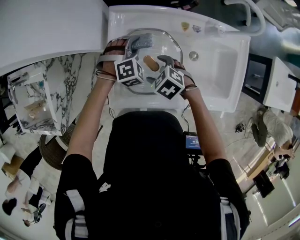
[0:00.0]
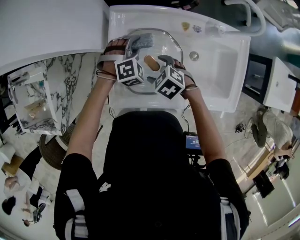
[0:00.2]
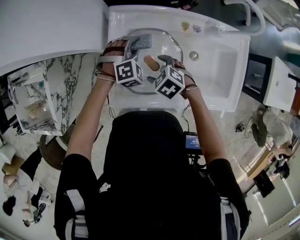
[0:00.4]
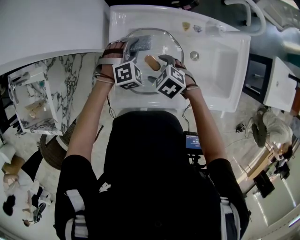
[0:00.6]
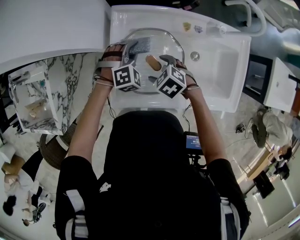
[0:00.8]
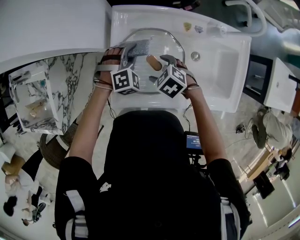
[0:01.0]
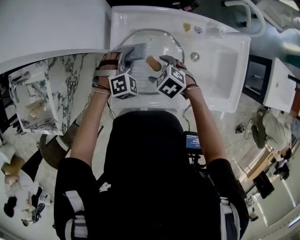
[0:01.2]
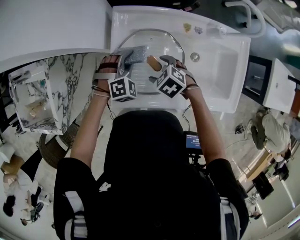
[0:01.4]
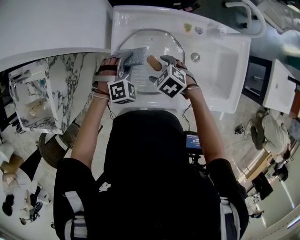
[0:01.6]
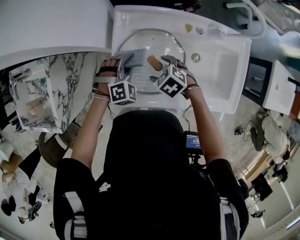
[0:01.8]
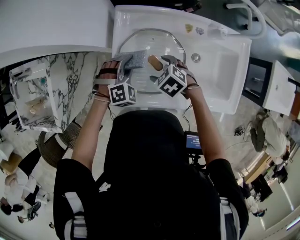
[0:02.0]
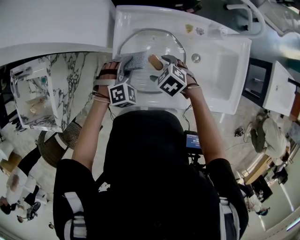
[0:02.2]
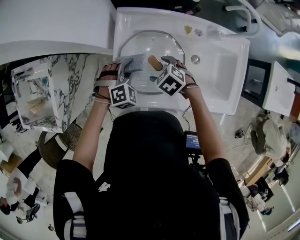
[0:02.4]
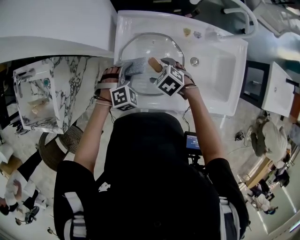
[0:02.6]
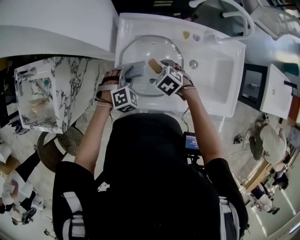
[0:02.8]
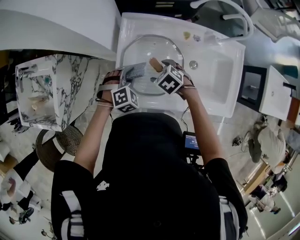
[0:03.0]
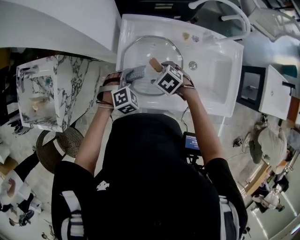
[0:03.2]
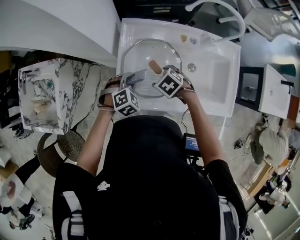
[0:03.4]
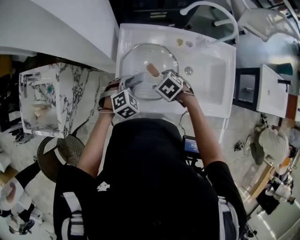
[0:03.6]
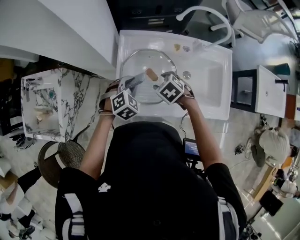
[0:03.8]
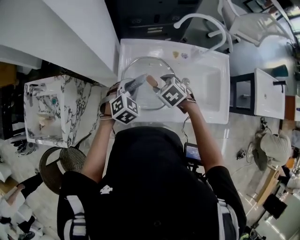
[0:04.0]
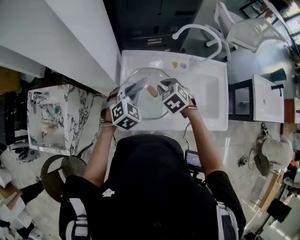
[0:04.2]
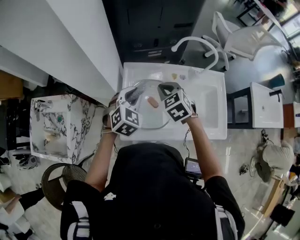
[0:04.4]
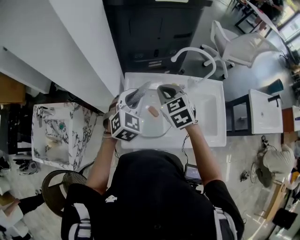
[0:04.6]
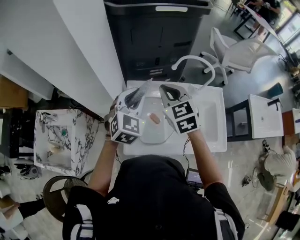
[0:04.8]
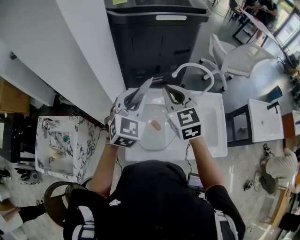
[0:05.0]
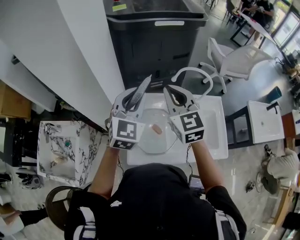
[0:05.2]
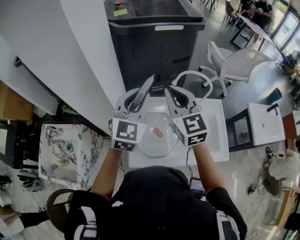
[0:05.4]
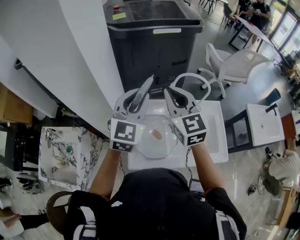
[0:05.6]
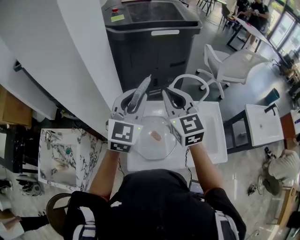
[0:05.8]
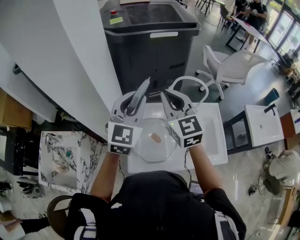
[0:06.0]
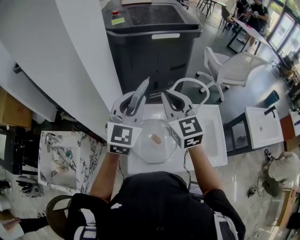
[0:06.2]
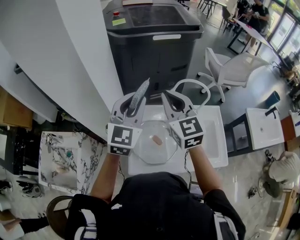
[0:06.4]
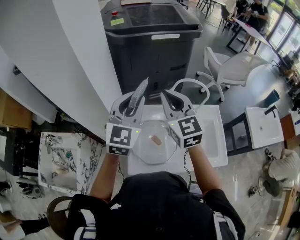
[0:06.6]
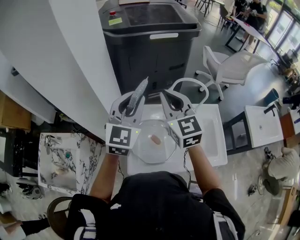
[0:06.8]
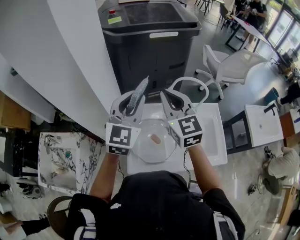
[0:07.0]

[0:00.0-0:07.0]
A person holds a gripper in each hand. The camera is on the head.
0:00.0 to 0:01.4: The left gripper travels to the left by some 5 cm.
0:01.4 to 0:02.8: The left gripper changes place by approximately 5 cm.
0:02.8 to 0:04.2: Both grippers travel together upward, about 15 cm. The right gripper rotates approximately 20 degrees, and closes its fingers.
0:04.2 to 0:05.6: The grippers both shift upward by approximately 30 cm. The left gripper tilts its fingers approximately 40 degrees upward; the right gripper points its fingers roughly 50 degrees further upward.
0:05.6 to 0:07.0: The grippers move only a little.

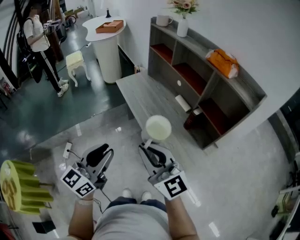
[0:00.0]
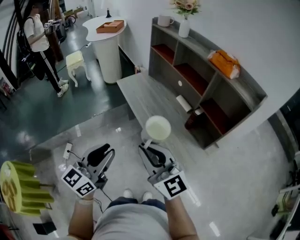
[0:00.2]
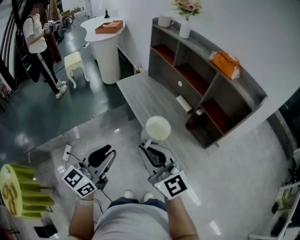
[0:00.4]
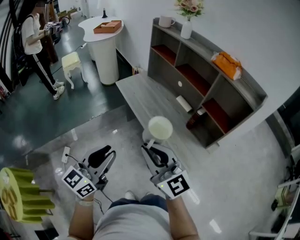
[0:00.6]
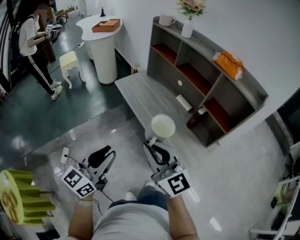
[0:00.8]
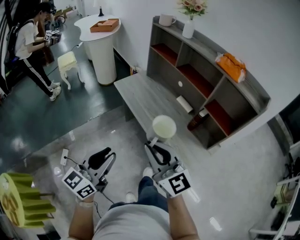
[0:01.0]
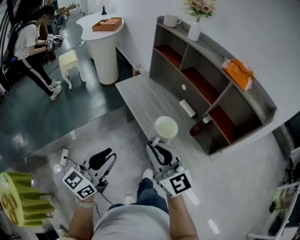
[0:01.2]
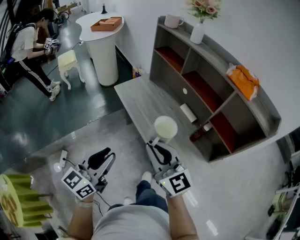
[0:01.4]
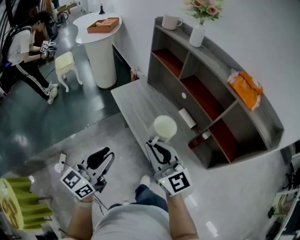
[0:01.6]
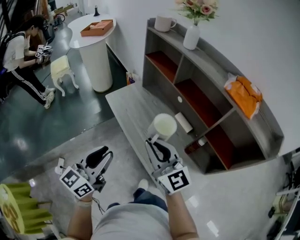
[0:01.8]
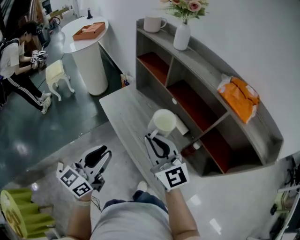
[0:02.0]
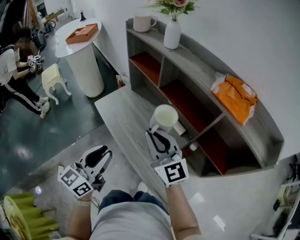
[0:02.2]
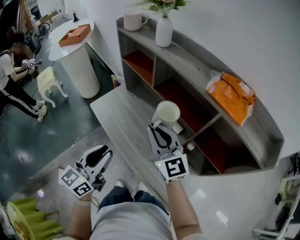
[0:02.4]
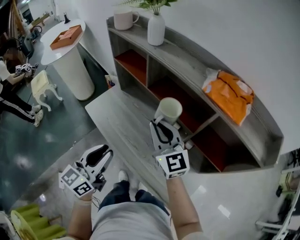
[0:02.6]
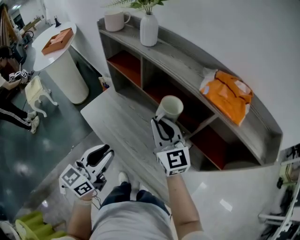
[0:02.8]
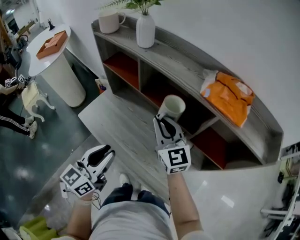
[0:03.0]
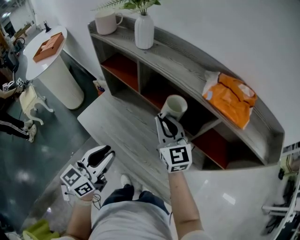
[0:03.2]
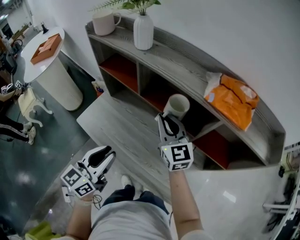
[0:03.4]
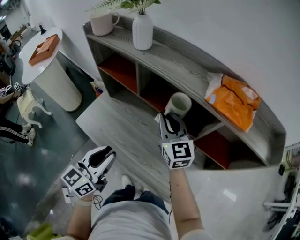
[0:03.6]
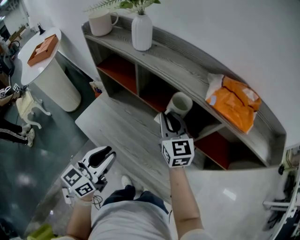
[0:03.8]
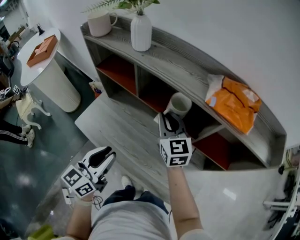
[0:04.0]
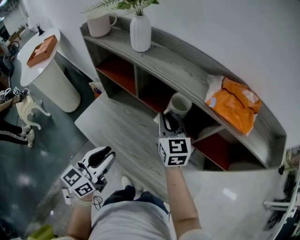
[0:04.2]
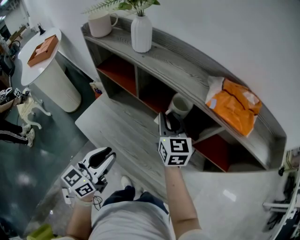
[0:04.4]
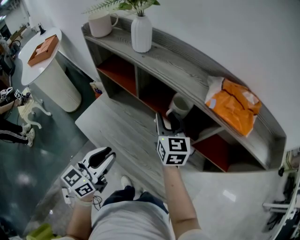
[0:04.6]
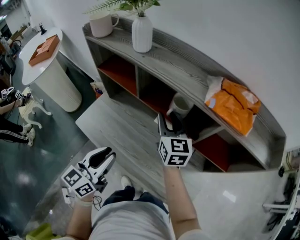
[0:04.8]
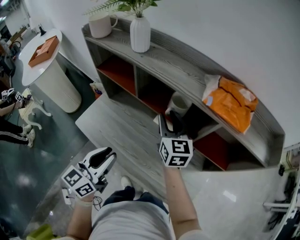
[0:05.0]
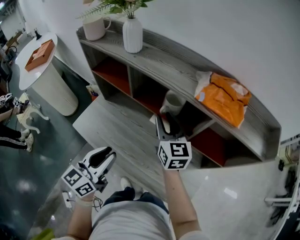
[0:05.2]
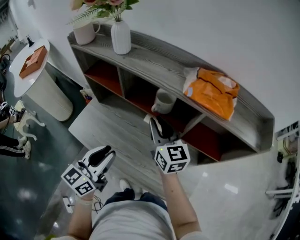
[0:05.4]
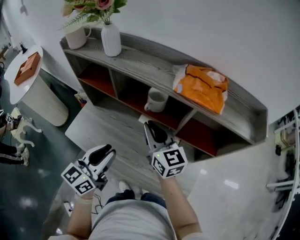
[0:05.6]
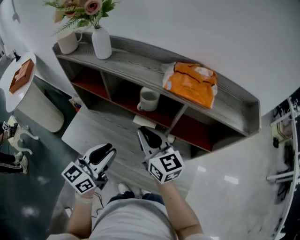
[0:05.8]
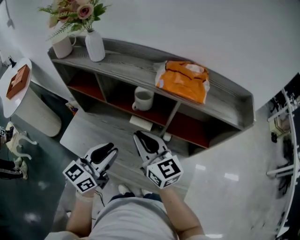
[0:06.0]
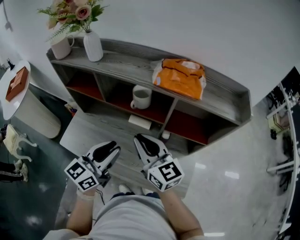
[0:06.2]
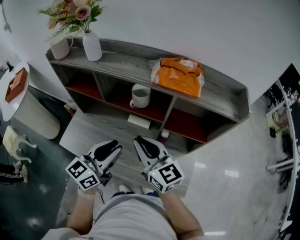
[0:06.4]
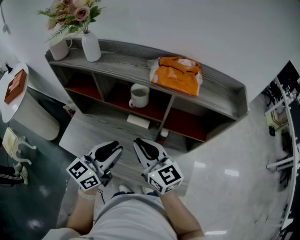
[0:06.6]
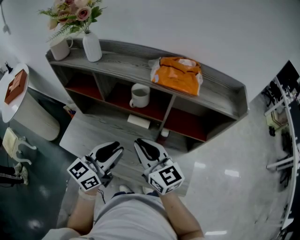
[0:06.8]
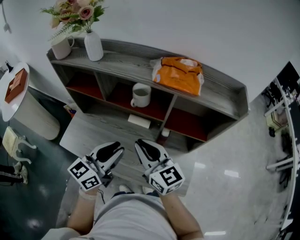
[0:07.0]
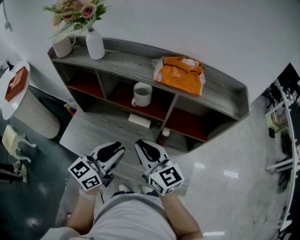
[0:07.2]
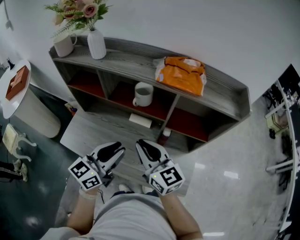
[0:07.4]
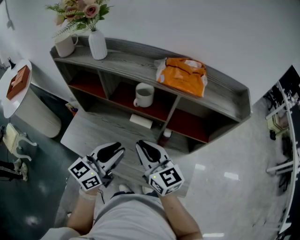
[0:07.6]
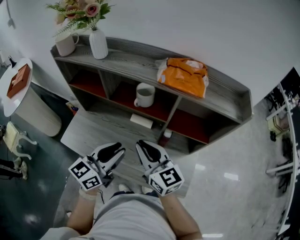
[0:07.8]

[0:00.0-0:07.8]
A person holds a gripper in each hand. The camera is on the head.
0:00.0 to 0:01.6: Both grippers move forward, some 20 cm.
0:01.6 to 0:03.2: The left gripper moves roughly 25 cm, and rotates roughly 20 degrees. Meanwhile the right gripper ends up roughly 35 cm from where it was, and changes its angle by approximately 30 degrees.
0:03.2 to 0:04.6: The right gripper heads forward, covering approximately 5 cm, and opens.
0:04.6 to 0:06.2: The right gripper is displaced backward by about 15 cm, and closes up, while the left gripper is displaced to the right by about 10 cm, and rotates approximately 20 degrees.
0:06.2 to 0:07.8: There are only small adjustments of the grippers.

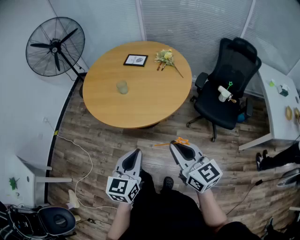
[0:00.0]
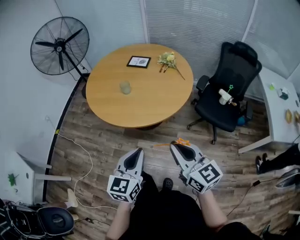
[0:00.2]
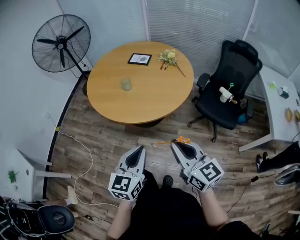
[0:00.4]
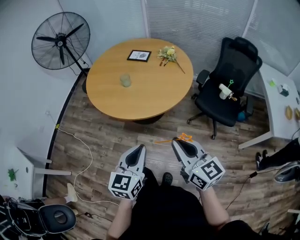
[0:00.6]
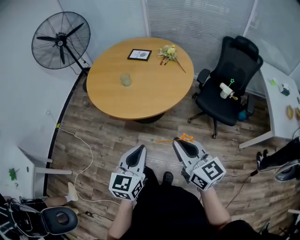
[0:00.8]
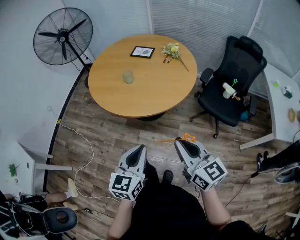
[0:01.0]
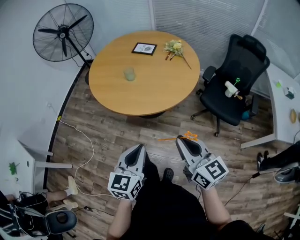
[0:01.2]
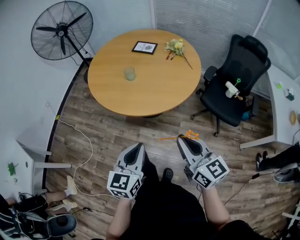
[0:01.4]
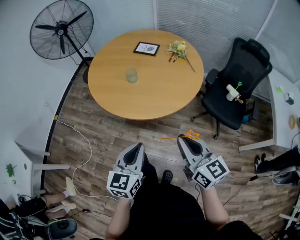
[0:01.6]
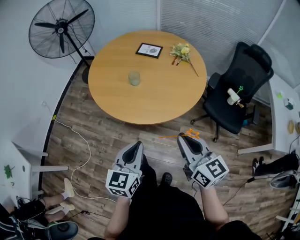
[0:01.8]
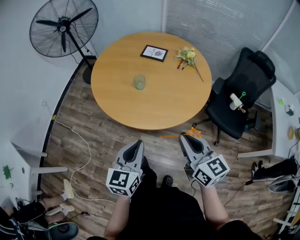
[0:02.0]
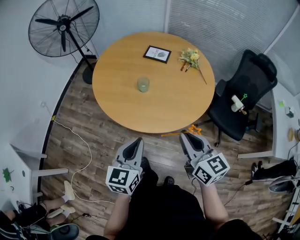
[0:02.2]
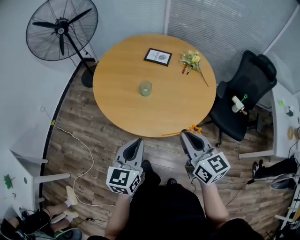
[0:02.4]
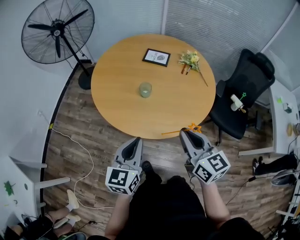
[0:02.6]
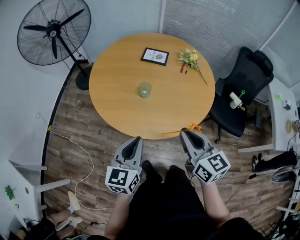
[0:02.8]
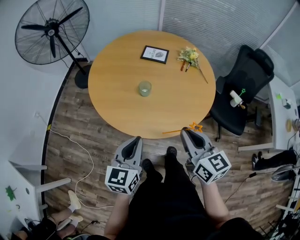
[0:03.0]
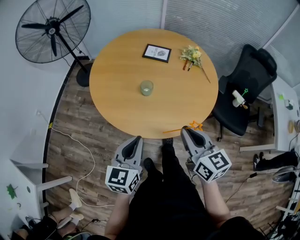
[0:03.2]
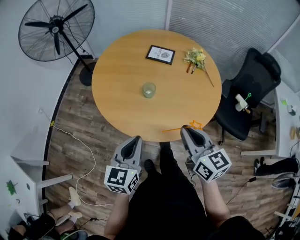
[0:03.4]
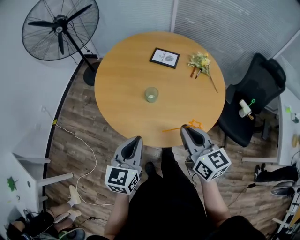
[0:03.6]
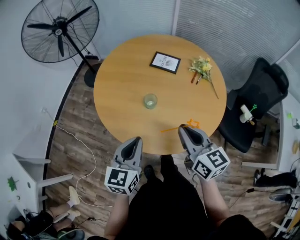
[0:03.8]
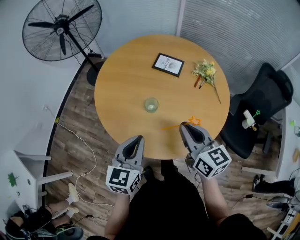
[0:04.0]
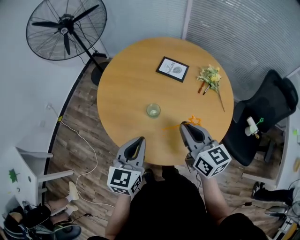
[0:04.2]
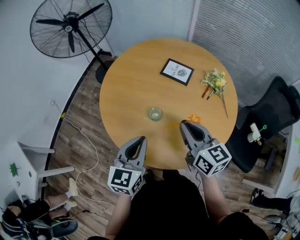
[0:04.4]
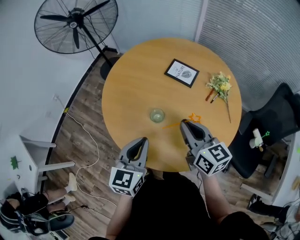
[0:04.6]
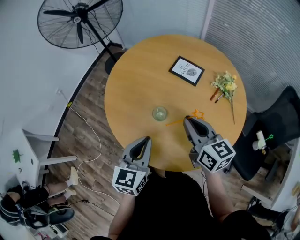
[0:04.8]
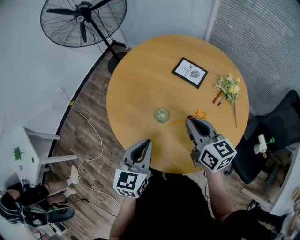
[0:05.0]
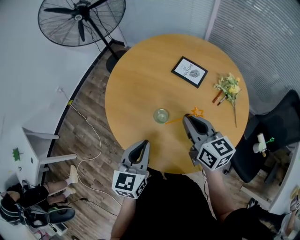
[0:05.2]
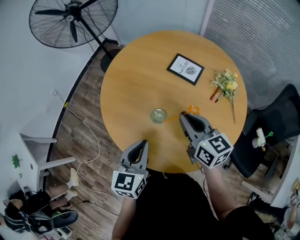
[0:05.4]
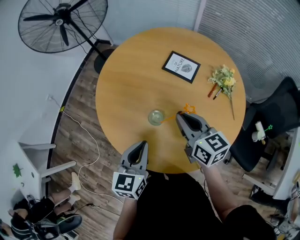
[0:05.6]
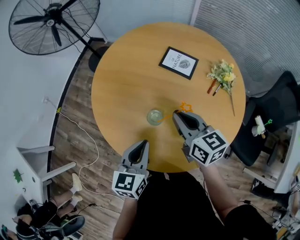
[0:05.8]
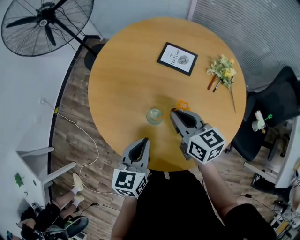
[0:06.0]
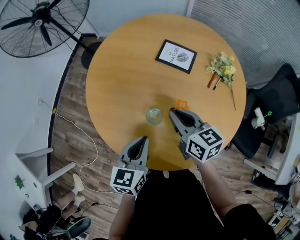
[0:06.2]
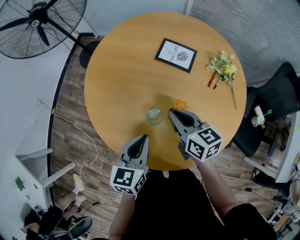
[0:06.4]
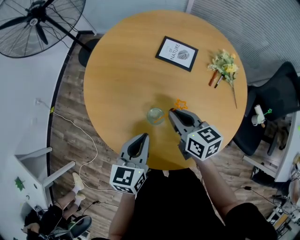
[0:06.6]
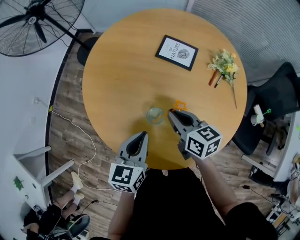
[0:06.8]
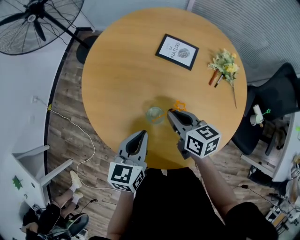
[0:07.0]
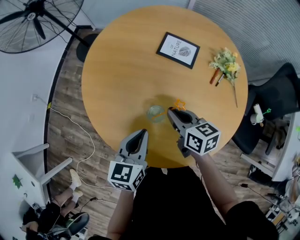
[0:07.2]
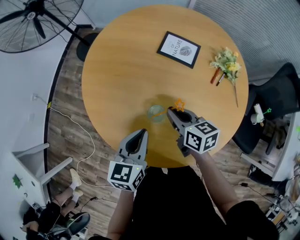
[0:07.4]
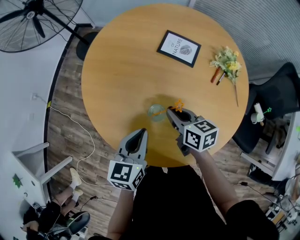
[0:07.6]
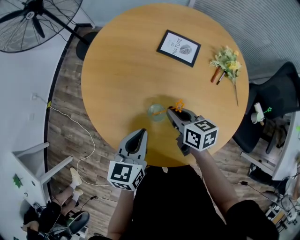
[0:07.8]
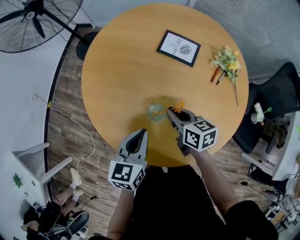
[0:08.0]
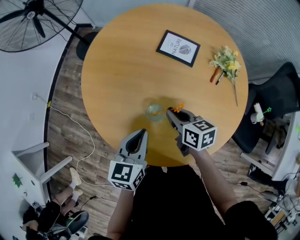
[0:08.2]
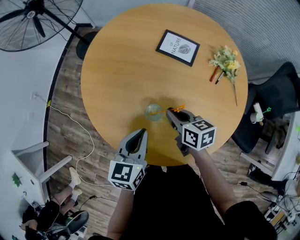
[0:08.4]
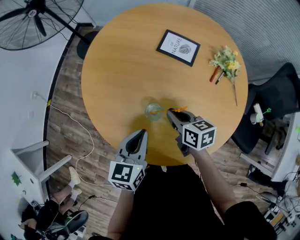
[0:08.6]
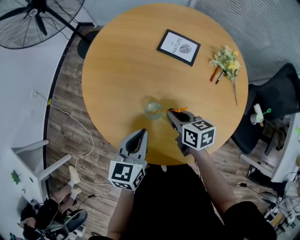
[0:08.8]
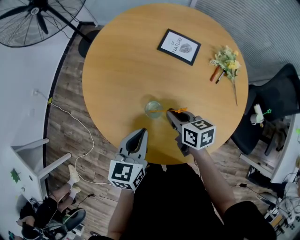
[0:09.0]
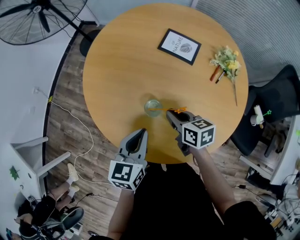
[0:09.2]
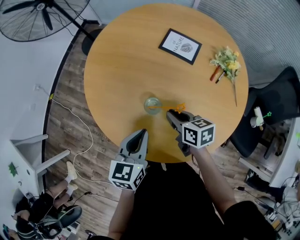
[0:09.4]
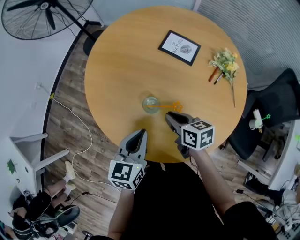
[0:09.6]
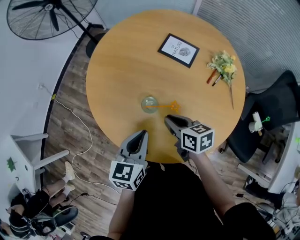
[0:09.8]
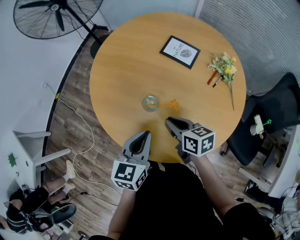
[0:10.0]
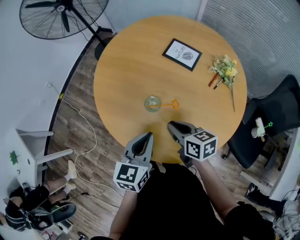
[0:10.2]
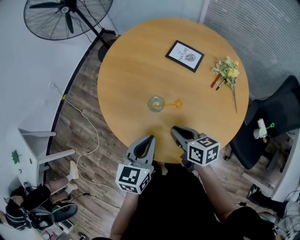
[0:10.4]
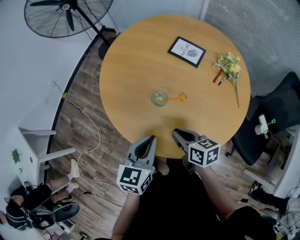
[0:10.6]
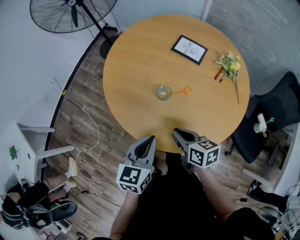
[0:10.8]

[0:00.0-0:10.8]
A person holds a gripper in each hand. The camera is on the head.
0:00.0 to 0:01.6: The grippers stay close to where they were, moving slightly.
0:01.6 to 0:03.0: Both grippers move forward and to the left, about 20 cm.
0:03.0 to 0:04.6: Both grippers move forward, about 20 cm.
0:04.6 to 0:06.2: The two grippers go roughly 10 cm downward and forward.
0:06.2 to 0:07.8: The right gripper moves downward, roughly 10 cm.
0:07.8 to 0:09.2: The grippers stay close to where they were, moving slightly.
0:09.2 to 0:10.8: Both grippers travel together backward, about 15 cm.
